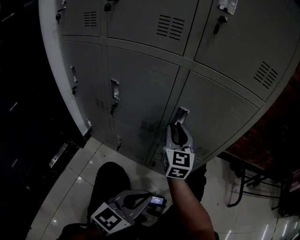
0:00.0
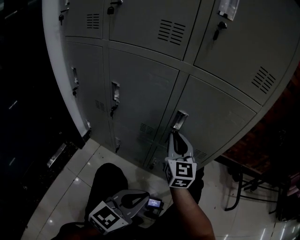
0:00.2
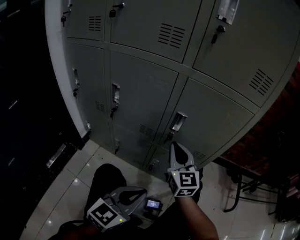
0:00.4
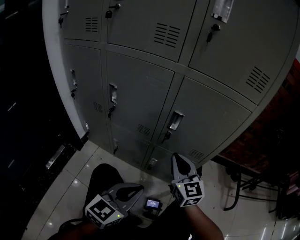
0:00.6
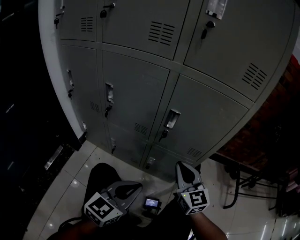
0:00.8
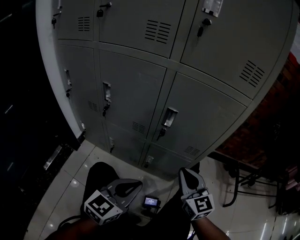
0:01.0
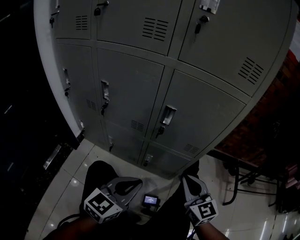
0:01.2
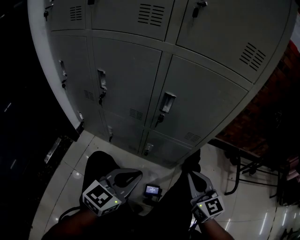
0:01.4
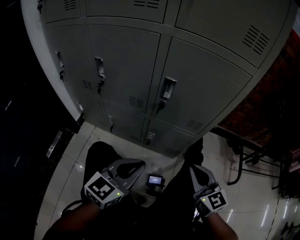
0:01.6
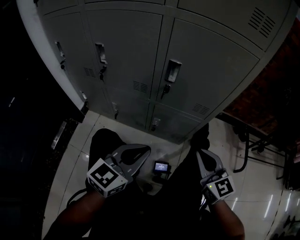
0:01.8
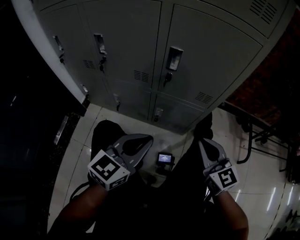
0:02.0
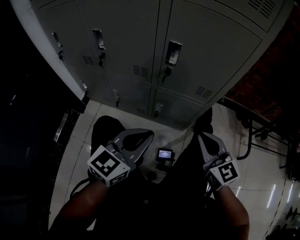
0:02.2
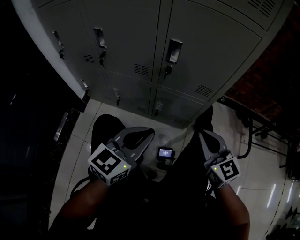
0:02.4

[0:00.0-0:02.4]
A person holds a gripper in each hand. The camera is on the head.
0:00.0 to 0:01.2: The right gripper goes approximately 20 cm backward and to the right, and closes its fingers.
0:01.2 to 0:02.4: The grippers stay close to where they were, moving slightly.

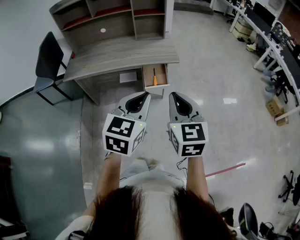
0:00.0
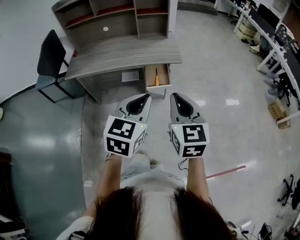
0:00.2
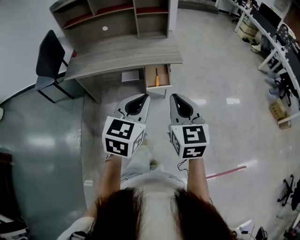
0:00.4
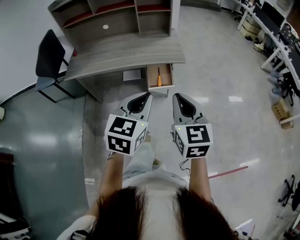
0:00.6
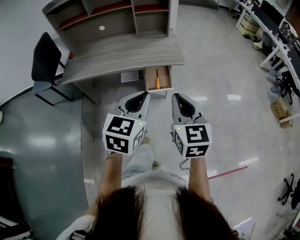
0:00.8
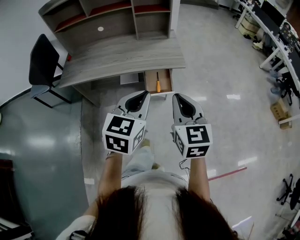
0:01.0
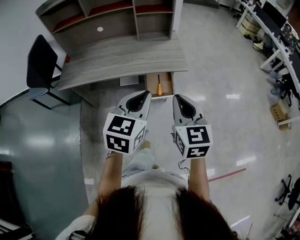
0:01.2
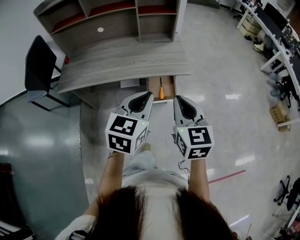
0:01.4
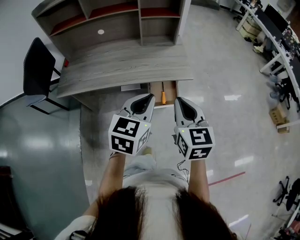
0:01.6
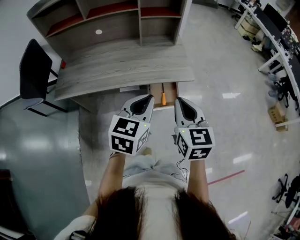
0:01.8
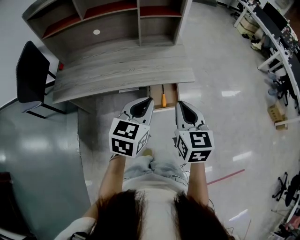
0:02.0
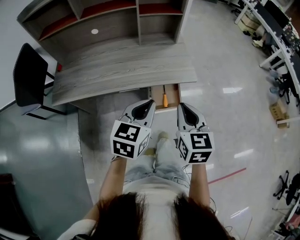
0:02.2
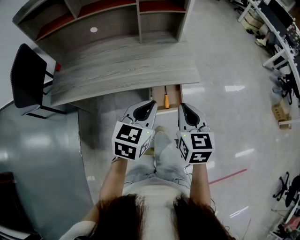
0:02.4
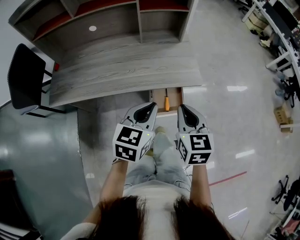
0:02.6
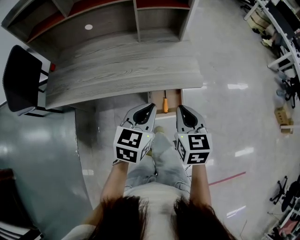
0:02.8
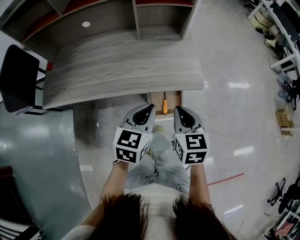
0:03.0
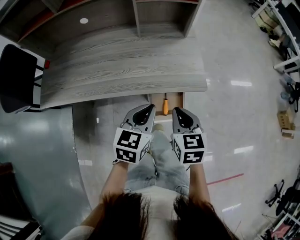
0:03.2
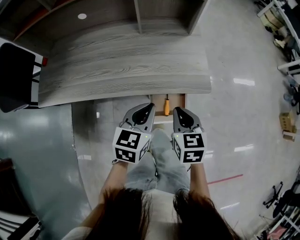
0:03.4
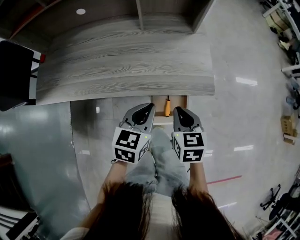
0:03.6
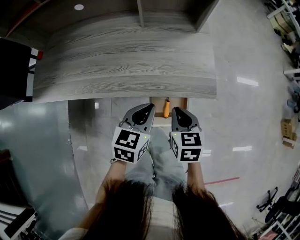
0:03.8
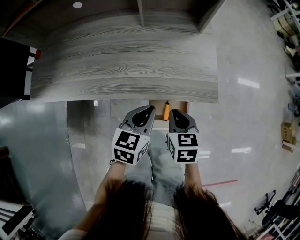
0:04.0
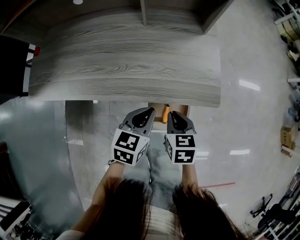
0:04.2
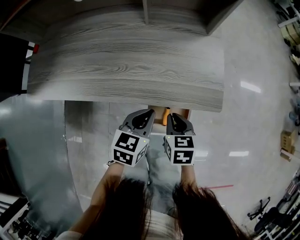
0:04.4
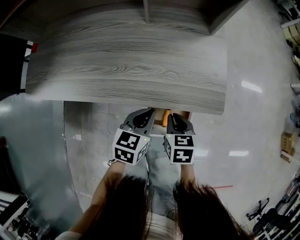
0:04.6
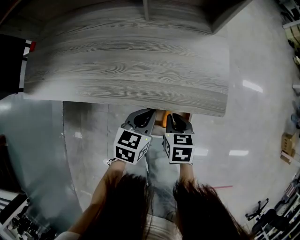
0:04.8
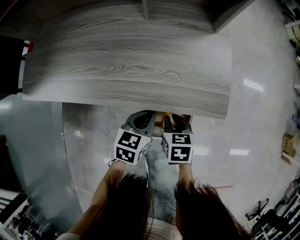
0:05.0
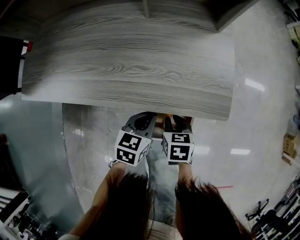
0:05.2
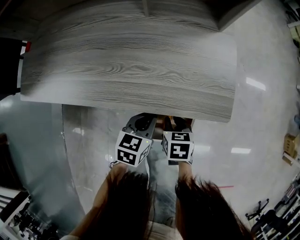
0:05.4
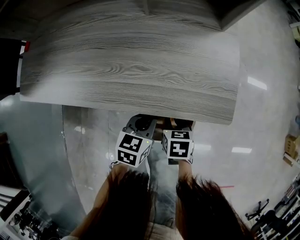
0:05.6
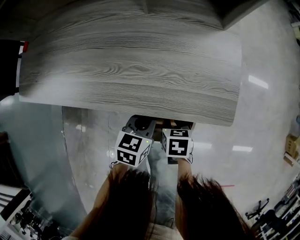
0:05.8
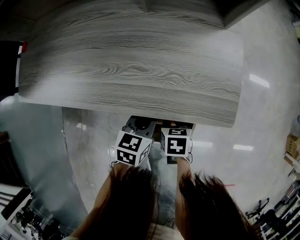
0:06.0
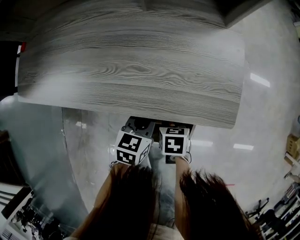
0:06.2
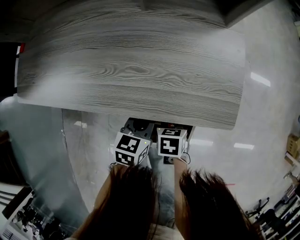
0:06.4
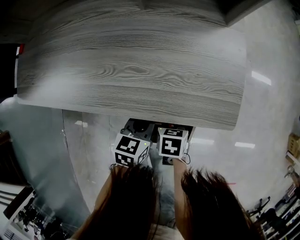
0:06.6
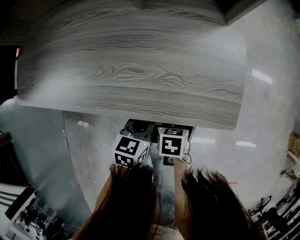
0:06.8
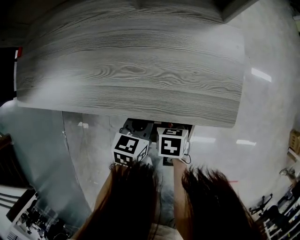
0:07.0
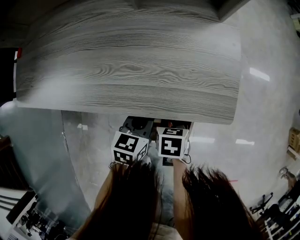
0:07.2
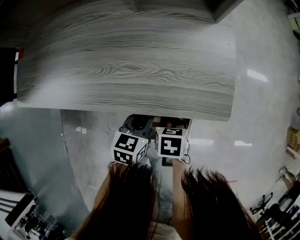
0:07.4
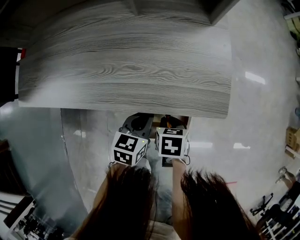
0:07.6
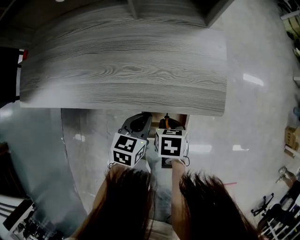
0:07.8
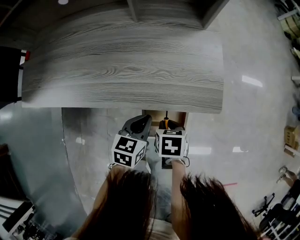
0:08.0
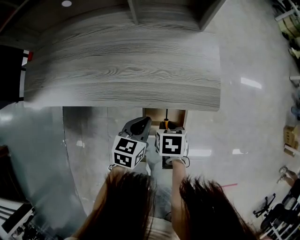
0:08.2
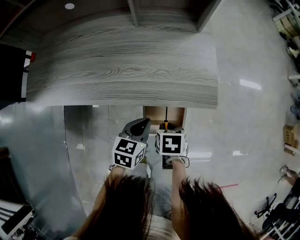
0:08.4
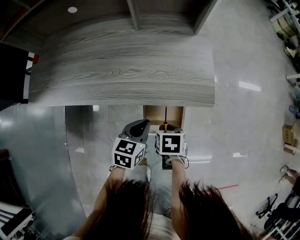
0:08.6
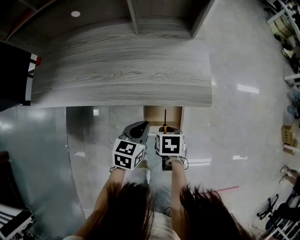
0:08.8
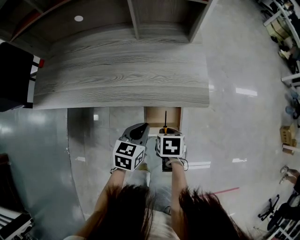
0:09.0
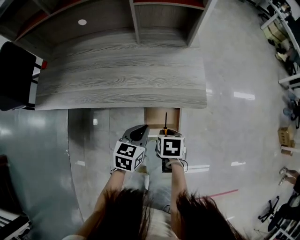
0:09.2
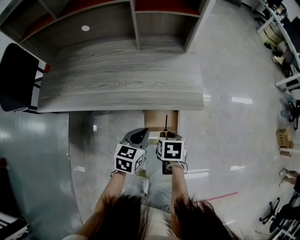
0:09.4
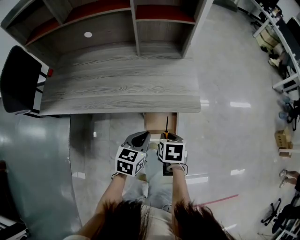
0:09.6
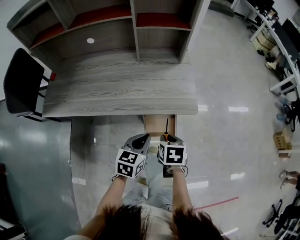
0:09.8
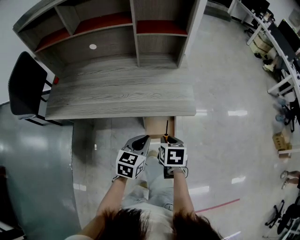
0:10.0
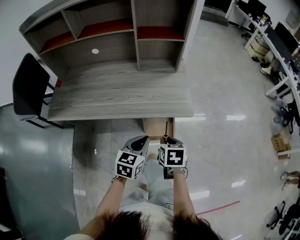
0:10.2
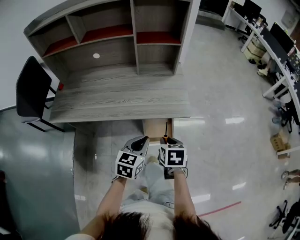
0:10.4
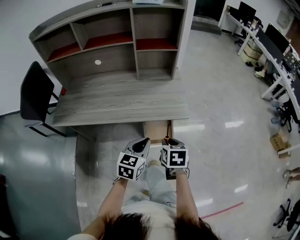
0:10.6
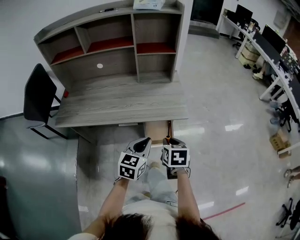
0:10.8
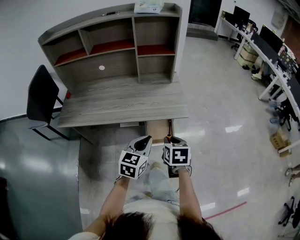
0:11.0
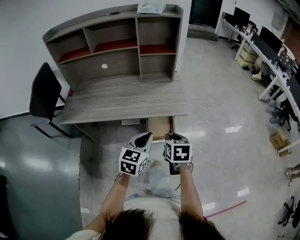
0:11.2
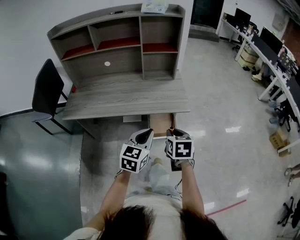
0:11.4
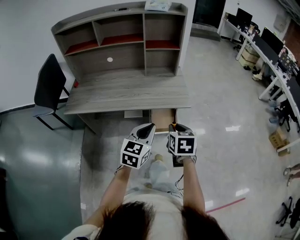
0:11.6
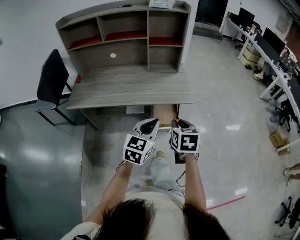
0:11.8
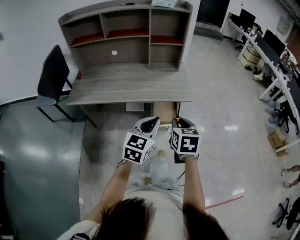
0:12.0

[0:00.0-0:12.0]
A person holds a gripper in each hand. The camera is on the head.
0:00.0 to 0:01.6: Both grippers move forward, approximately 20 cm.
0:01.6 to 0:03.0: Both grippers move forward and downward, some 20 cm.
0:03.0 to 0:04.4: The left gripper is displaced downward and forward by some 20 cm, while the right gripper is displaced downward by about 20 cm, and swivels about 20 degrees.
0:04.4 to 0:06.0: The two grippers go roughly 10 cm downward. The right gripper opens up.
0:06.0 to 0:07.6: The grippers make only small movements.
0:07.6 to 0:09.0: The two grippers go approximately 10 cm upward and backward.
0:09.0 to 0:10.4: The right gripper travels upward by some 15 cm, and swivels some 20 degrees; the left gripper heads upward and backward, covering roughly 15 cm.
0:10.4 to 0:12.0: The left gripper travels backward and upward by roughly 20 cm. Meanwhile the right gripper heads upward and backward, covering some 20 cm.

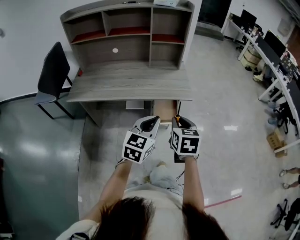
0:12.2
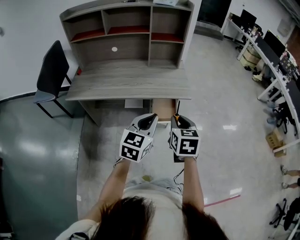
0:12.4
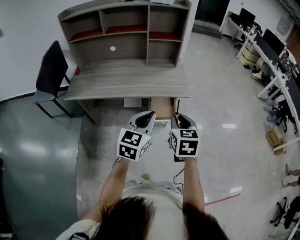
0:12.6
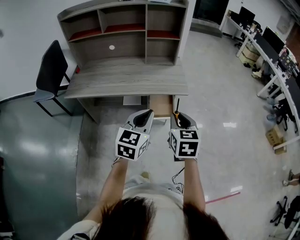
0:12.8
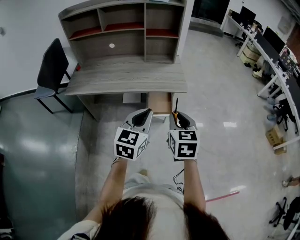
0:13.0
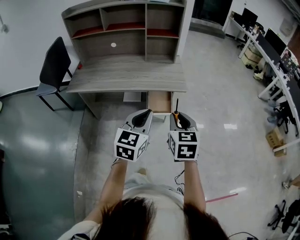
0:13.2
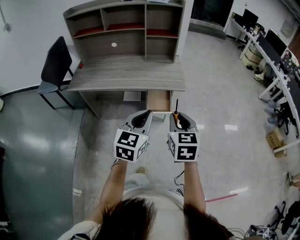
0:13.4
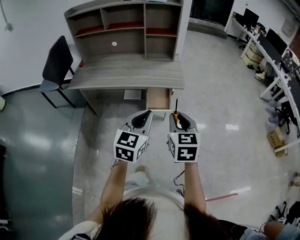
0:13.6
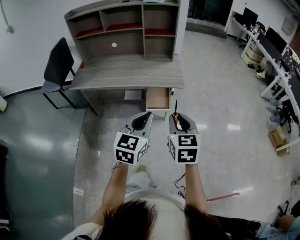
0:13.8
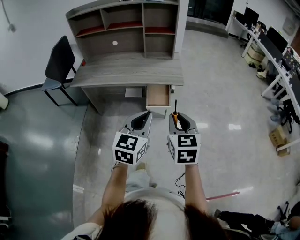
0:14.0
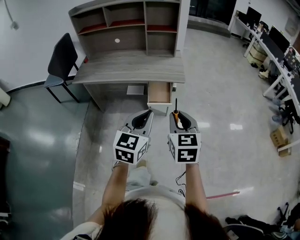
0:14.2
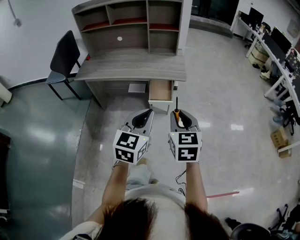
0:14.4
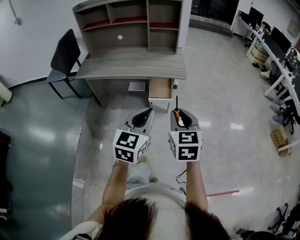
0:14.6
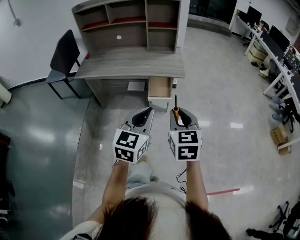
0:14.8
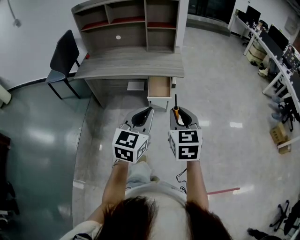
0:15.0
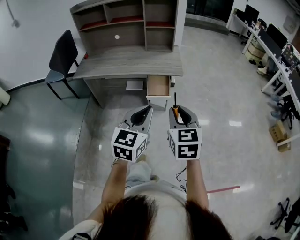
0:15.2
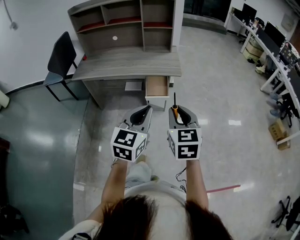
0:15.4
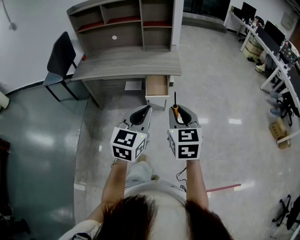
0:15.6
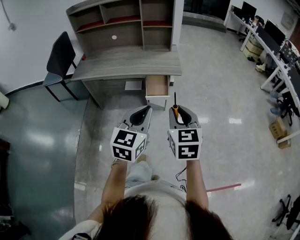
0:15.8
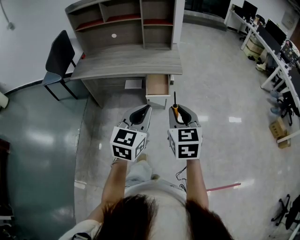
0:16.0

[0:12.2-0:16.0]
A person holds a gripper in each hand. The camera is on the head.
0:12.2 to 0:13.4: The grippers both shift backward and to the right by some 10 cm.
0:13.4 to 0:14.8: The right gripper is displaced backward by about 10 cm. The left gripper goes about 15 cm backward and to the right.
0:14.8 to 0:16.0: The grippers stay close to where they were, moving slightly.

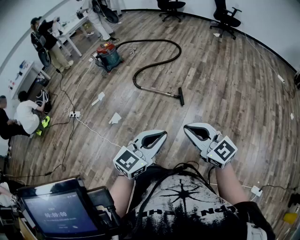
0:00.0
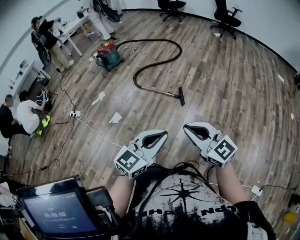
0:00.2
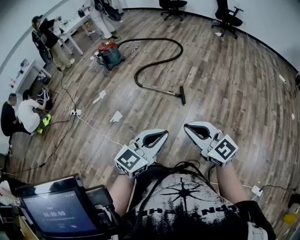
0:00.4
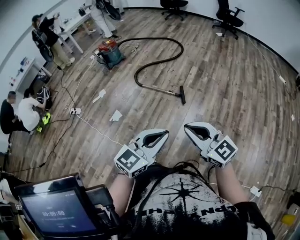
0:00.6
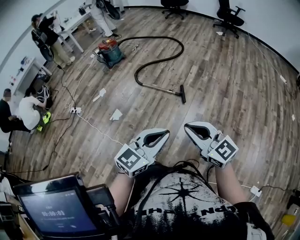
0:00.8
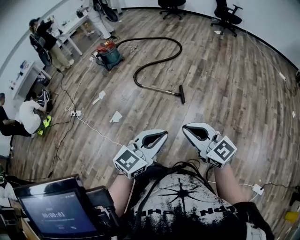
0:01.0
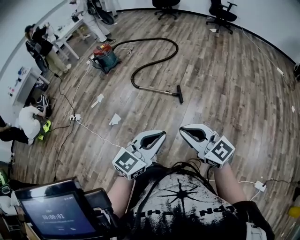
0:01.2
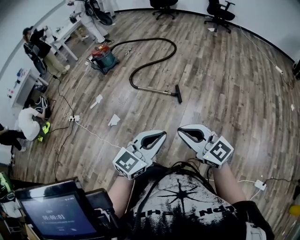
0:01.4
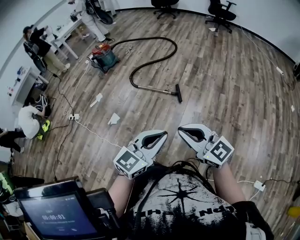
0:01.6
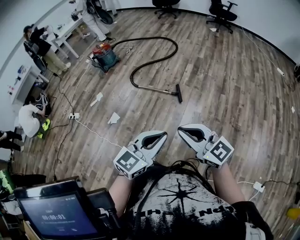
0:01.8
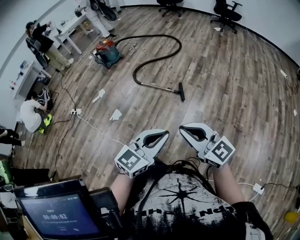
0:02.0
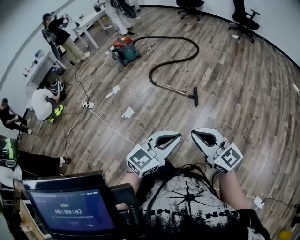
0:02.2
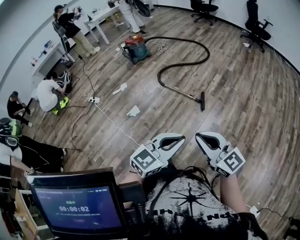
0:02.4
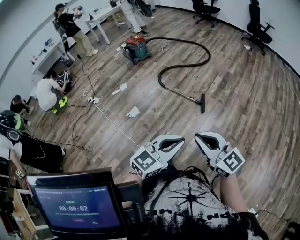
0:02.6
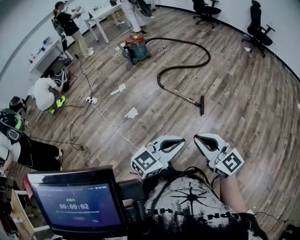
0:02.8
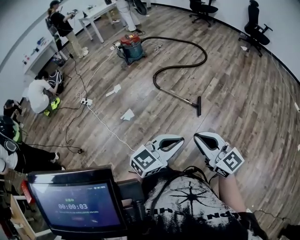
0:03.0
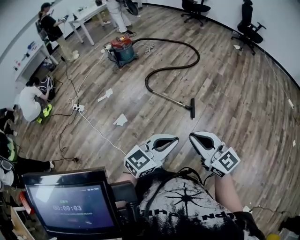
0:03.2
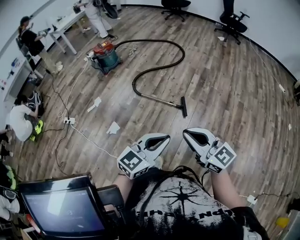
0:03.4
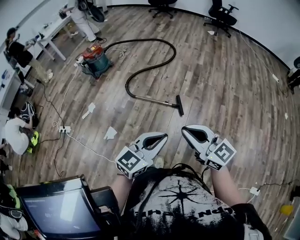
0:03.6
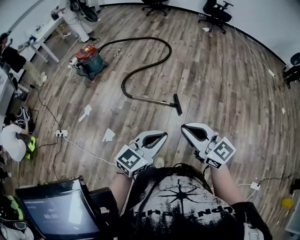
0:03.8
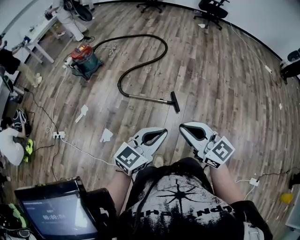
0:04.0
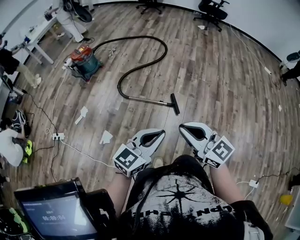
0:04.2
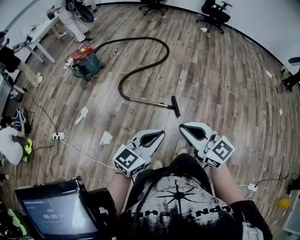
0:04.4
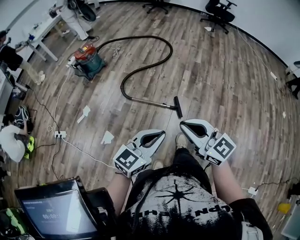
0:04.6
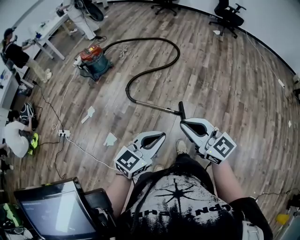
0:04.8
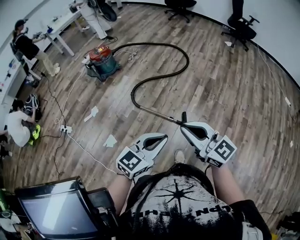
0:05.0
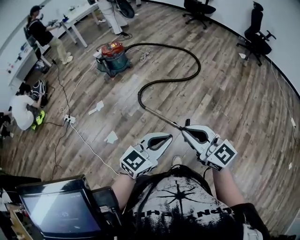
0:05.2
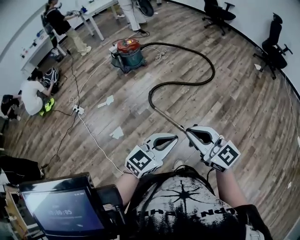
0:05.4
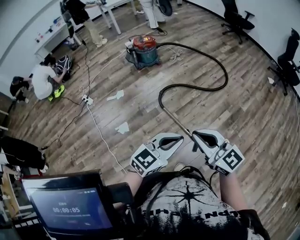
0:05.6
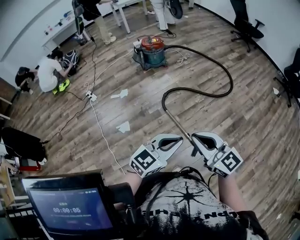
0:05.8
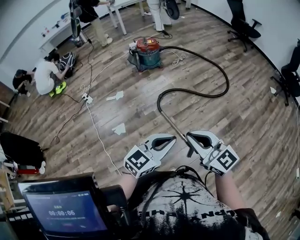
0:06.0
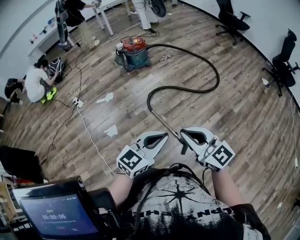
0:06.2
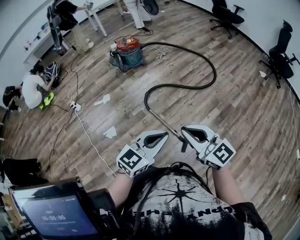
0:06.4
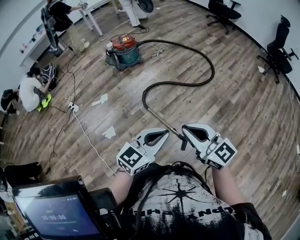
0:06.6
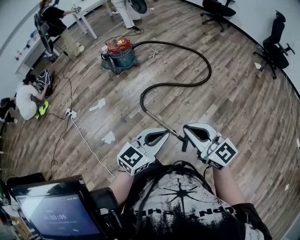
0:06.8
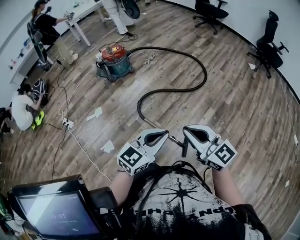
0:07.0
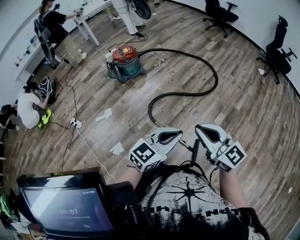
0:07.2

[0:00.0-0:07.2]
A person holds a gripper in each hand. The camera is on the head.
0:00.0 to 0:01.4: The grippers move only a little.
0:01.4 to 0:02.8: The left gripper moves roughly 5 cm. Meanwhile the right gripper heads to the left, covering roughly 5 cm.
0:02.8 to 0:04.4: The left gripper heads forward and to the left, covering some 30 cm; the right gripper moves forward, roughly 25 cm.
0:04.4 to 0:05.8: The right gripper changes place by roughly 25 cm, and turns by roughly 40 degrees, while the left gripper changes place by approximately 25 cm, and rotates approximately 30 degrees.
0:05.8 to 0:07.2: The two grippers go approximately 20 cm forward.
